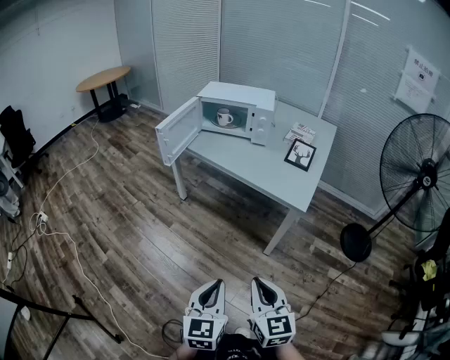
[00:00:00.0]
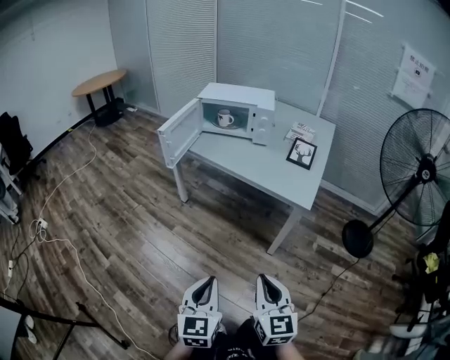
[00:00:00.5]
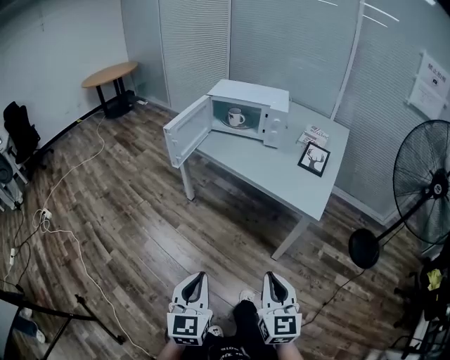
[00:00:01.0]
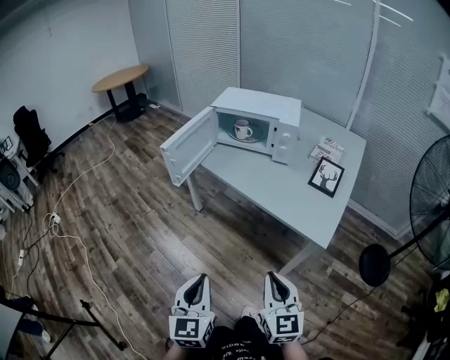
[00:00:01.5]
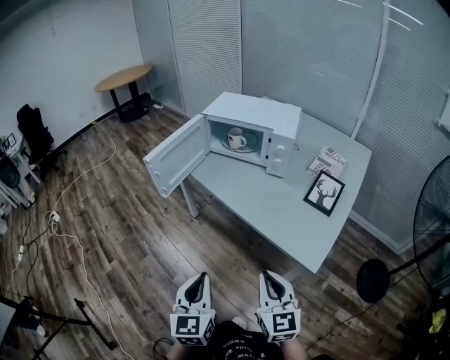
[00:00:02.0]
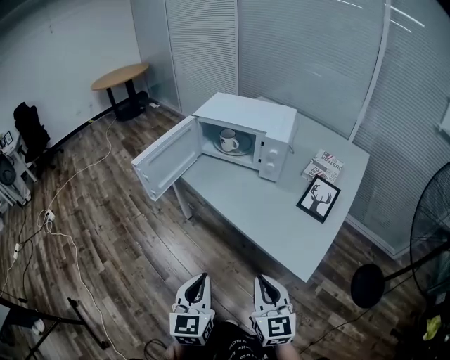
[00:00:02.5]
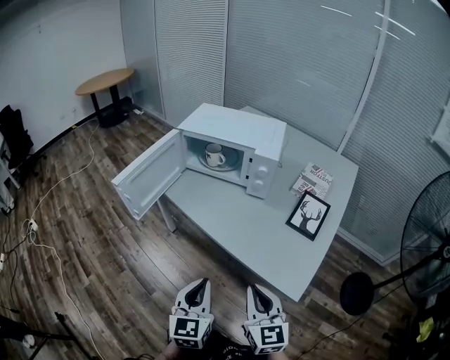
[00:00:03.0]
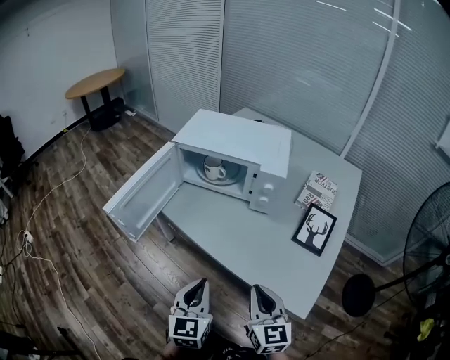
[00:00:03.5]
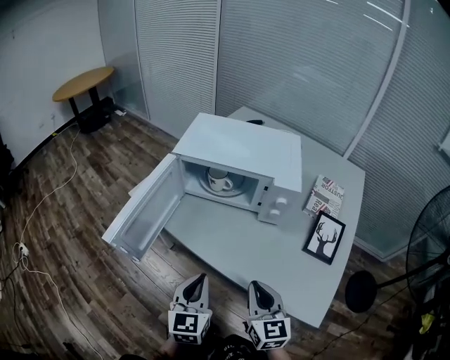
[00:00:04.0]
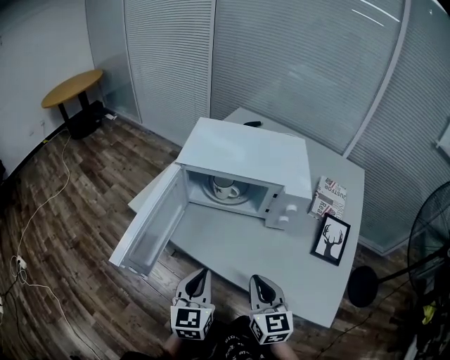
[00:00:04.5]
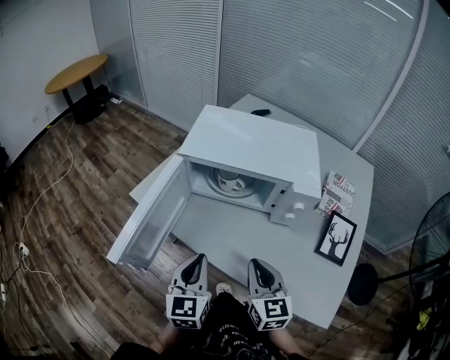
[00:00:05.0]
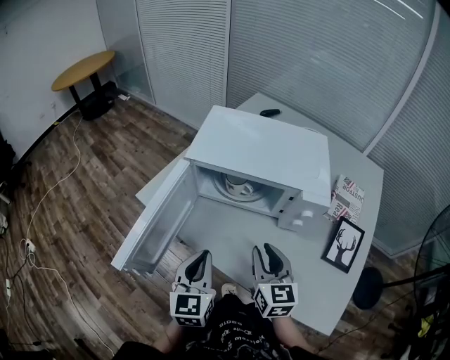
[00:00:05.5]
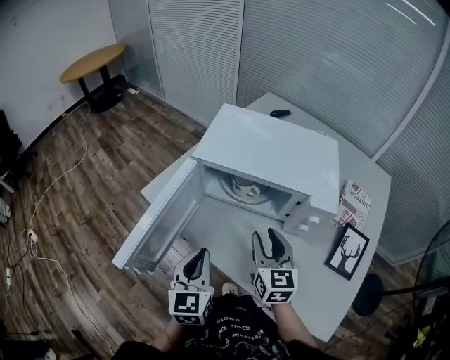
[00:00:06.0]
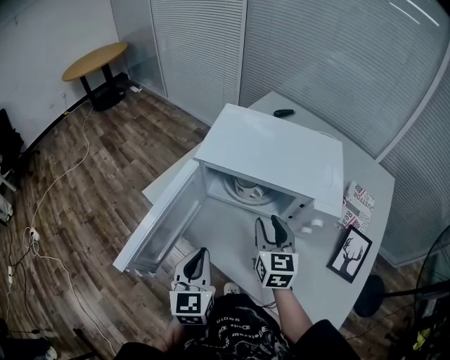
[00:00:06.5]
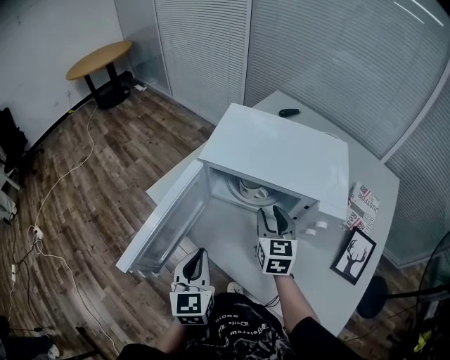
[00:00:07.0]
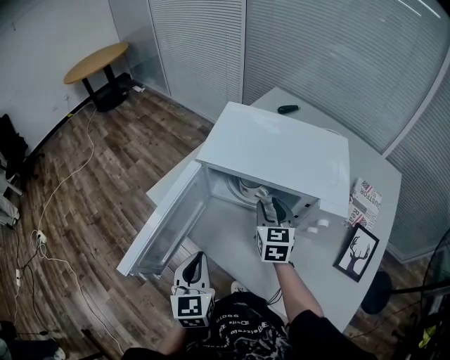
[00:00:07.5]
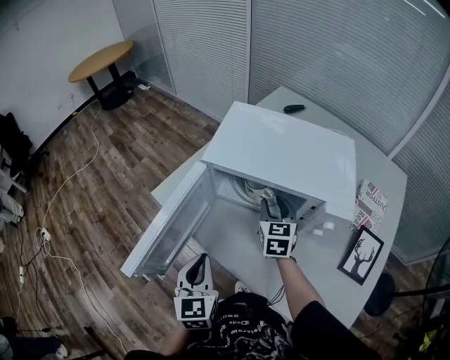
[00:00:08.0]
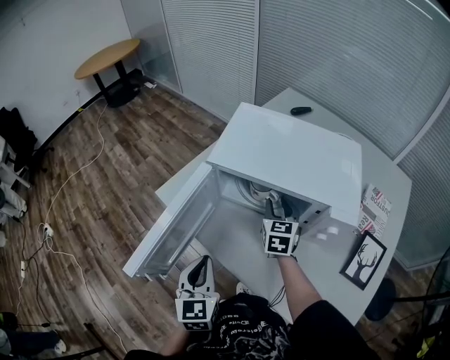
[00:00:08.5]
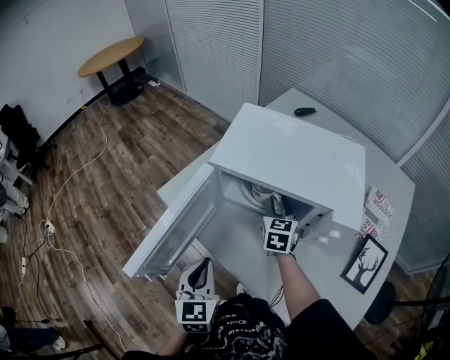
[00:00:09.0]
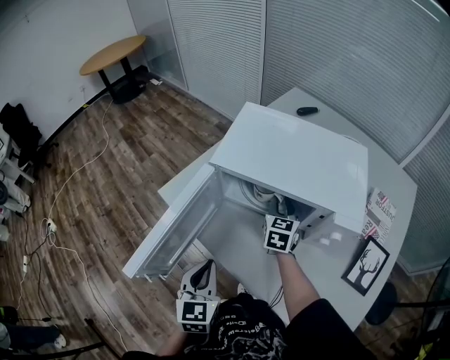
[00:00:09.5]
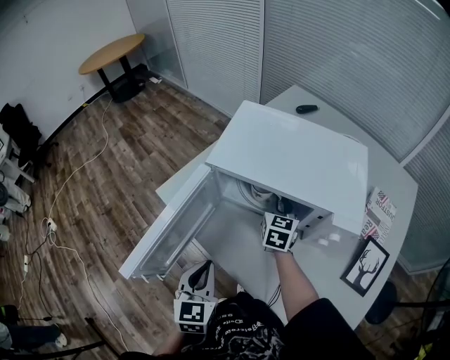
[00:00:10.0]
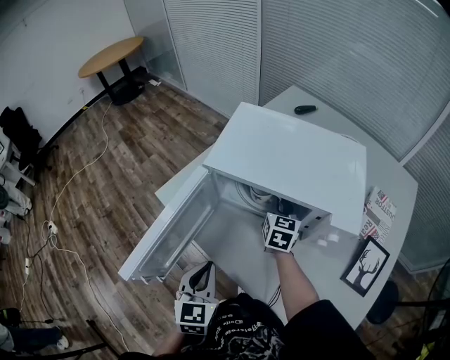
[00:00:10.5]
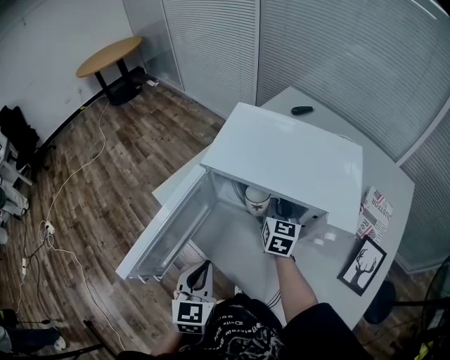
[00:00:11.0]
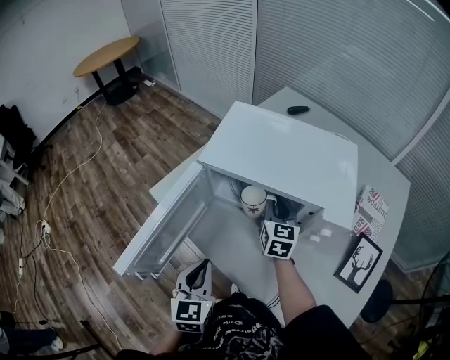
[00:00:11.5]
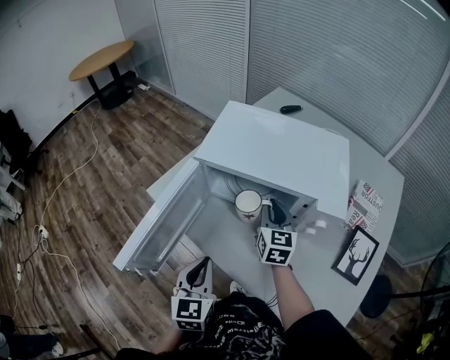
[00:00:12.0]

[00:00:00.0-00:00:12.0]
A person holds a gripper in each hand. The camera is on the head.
00:00:00.0 to 00:00:02.0: Both grippers travel together forward, some 25 cm.
00:00:02.0 to 00:00:04.0: The two grippers go roughly 25 cm forward.
00:00:04.0 to 00:00:06.0: The left gripper shifts about 15 cm forward and to the left. The right gripper moves forward, about 20 cm, and opens.
00:00:06.0 to 00:00:08.0: The right gripper is displaced forward by approximately 15 cm.
00:00:08.0 to 00:00:10.0: The right gripper changes place by approximately 5 cm, and closes its fingers.
00:00:10.0 to 00:00:12.0: The right gripper shifts roughly 5 cm backward.

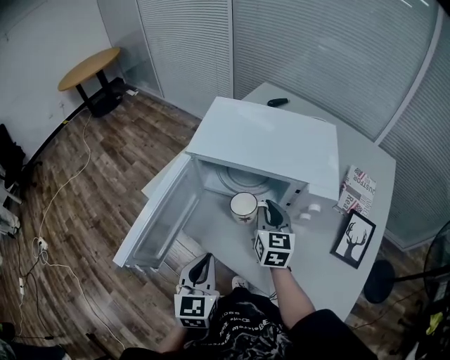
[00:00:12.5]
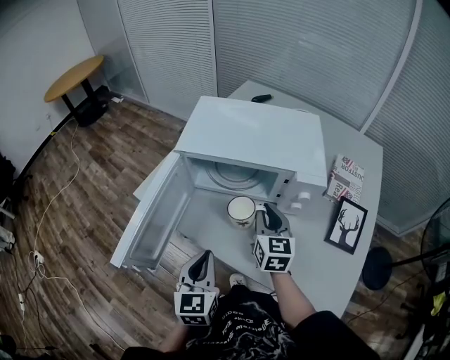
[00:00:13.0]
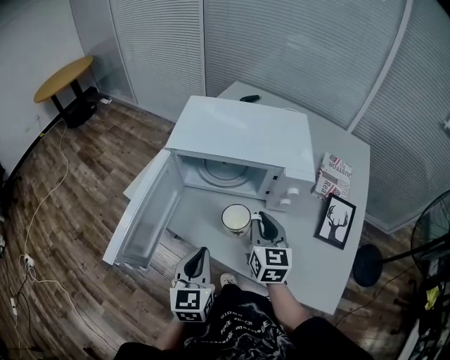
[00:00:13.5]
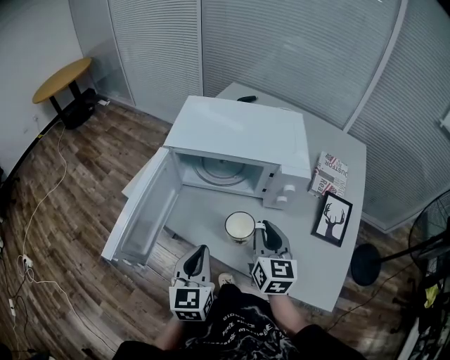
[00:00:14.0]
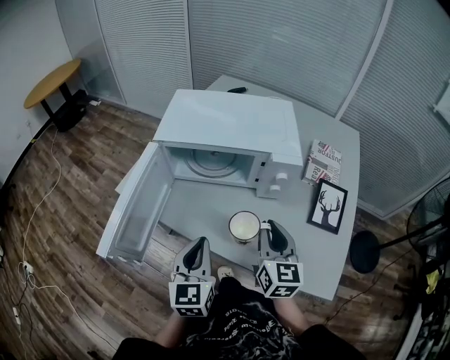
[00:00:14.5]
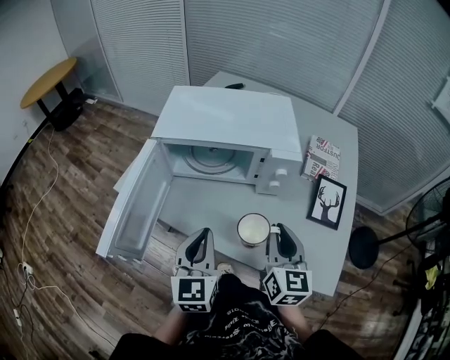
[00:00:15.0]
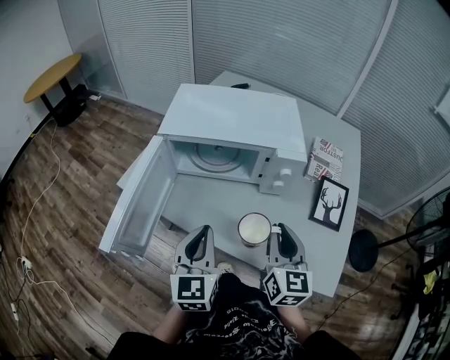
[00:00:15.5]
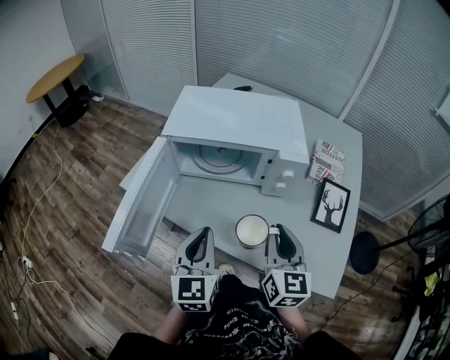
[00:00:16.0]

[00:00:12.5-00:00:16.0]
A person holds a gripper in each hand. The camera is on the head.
00:00:12.5 to 00:00:14.5: The left gripper shifts by approximately 5 cm; the right gripper travels backward and to the right by roughly 15 cm.
00:00:14.5 to 00:00:16.0: The grippers stay close to where they were, moving slightly.

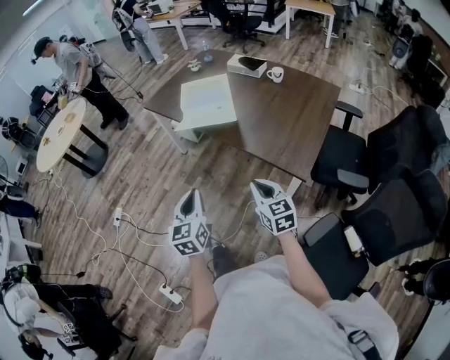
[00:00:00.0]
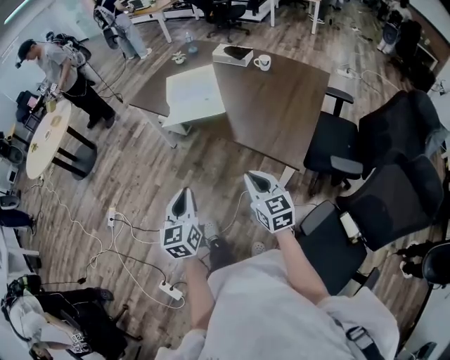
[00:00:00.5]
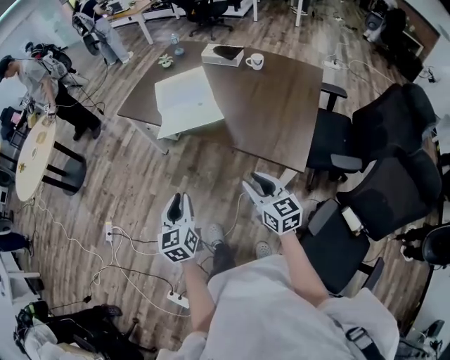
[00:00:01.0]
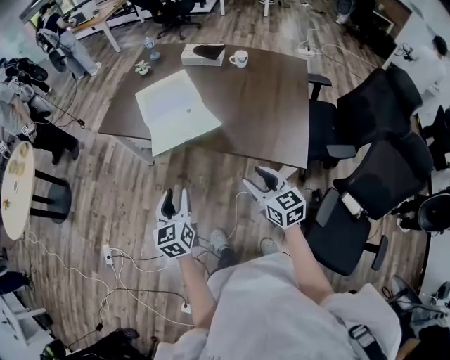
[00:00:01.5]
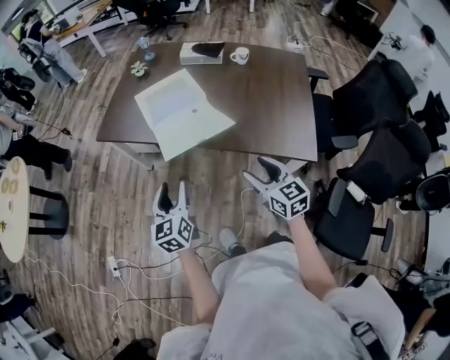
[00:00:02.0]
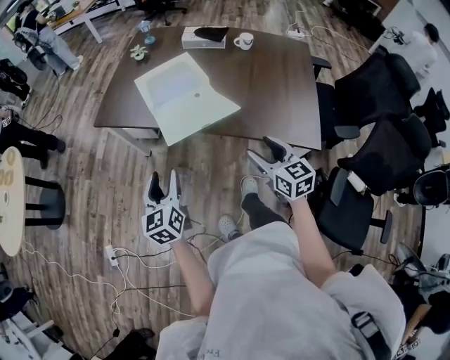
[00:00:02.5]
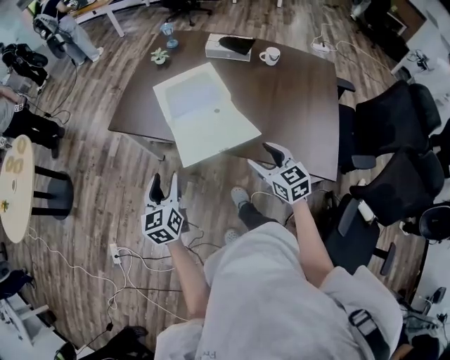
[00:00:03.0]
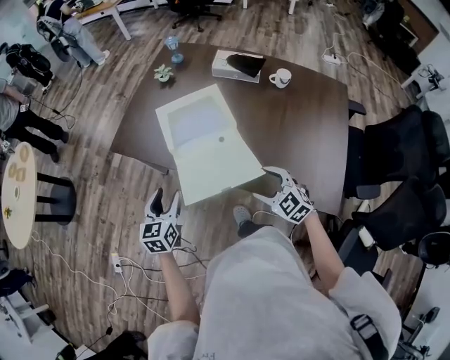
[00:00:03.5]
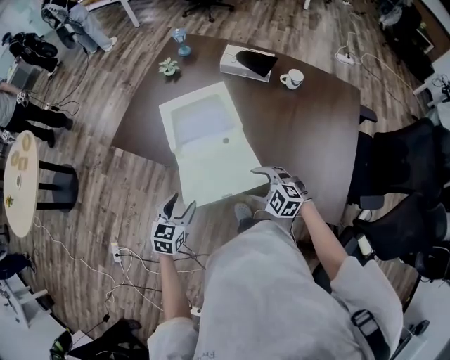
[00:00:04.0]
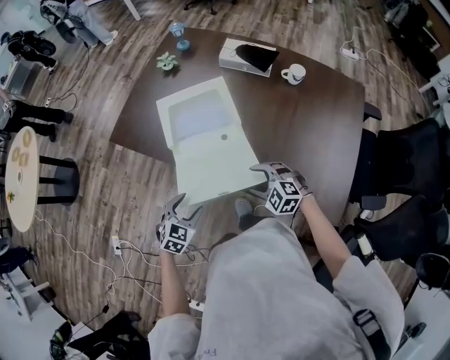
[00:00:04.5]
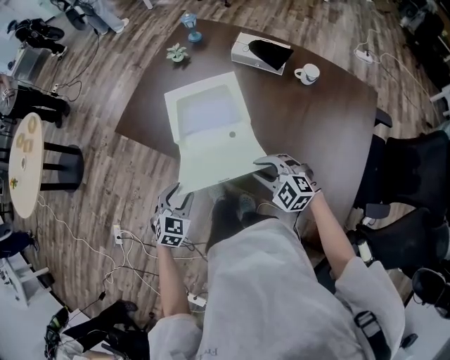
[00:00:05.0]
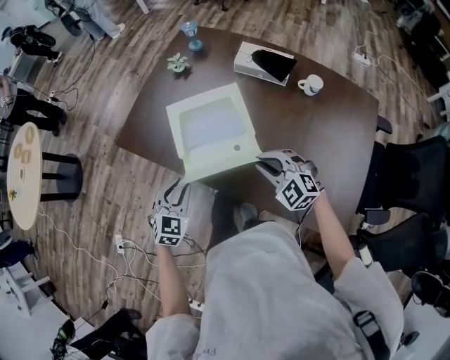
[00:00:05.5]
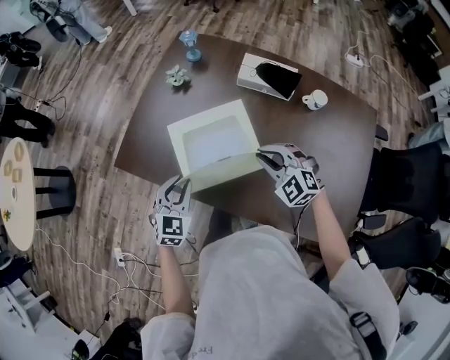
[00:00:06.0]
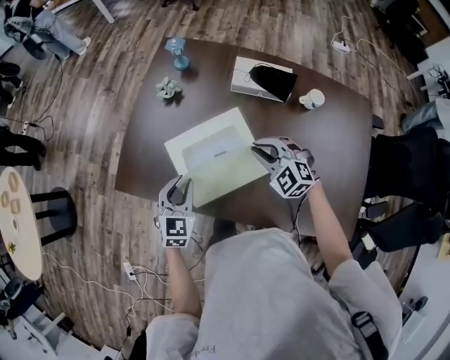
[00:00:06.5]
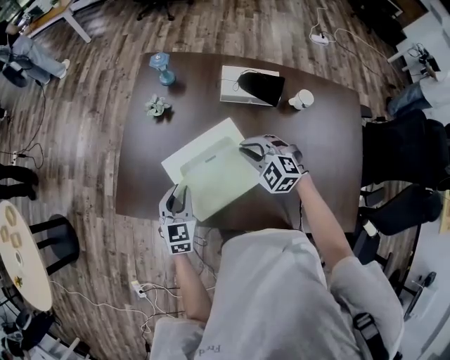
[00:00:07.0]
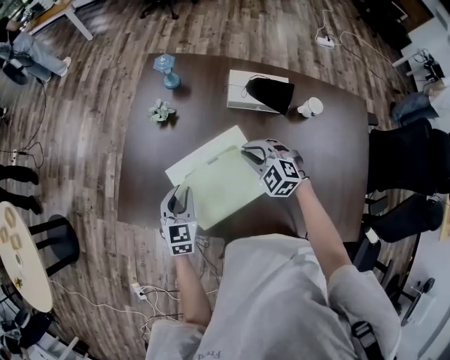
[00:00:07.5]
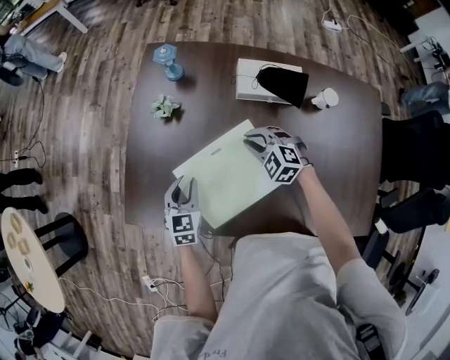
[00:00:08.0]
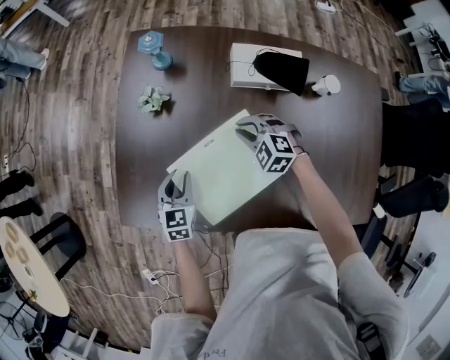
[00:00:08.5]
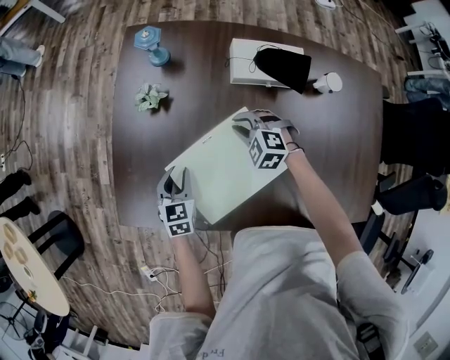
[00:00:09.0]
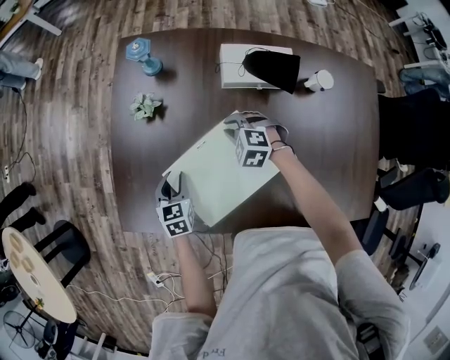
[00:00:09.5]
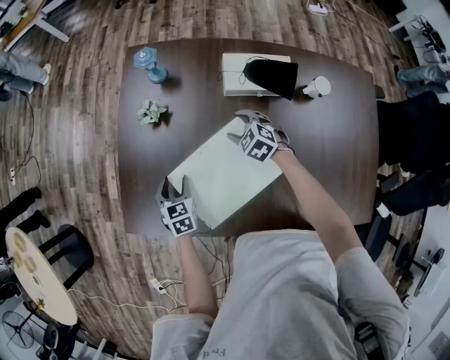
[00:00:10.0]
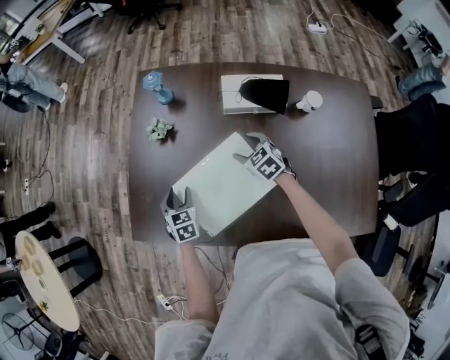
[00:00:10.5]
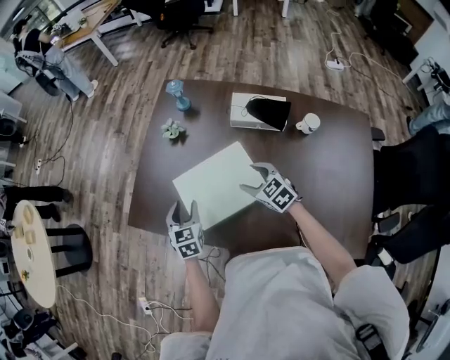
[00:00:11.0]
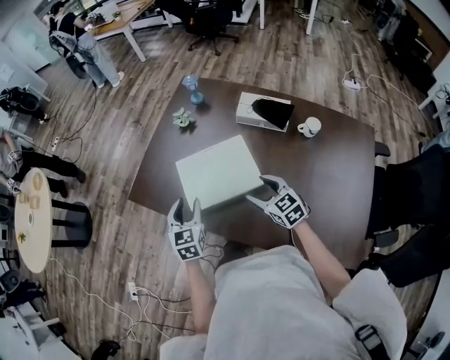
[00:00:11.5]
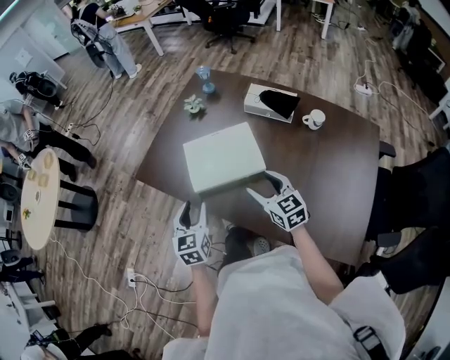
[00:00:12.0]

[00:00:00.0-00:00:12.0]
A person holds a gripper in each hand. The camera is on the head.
00:00:00.0 to 00:00:02.0: Both grippers travel together forward and to the left, approximately 25 cm. The right gripper opens; the left gripper opens.
00:00:02.0 to 00:00:04.0: Both grippers move forward and downward, approximately 25 cm. The right gripper changes its angle by roughly 60 degrees. The left gripper swivels some 30 degrees.
00:00:04.0 to 00:00:06.0: Both grippers travel together forward, roughly 25 cm. The left gripper changes its angle by some 20 degrees, and closes up. Meanwhile the right gripper closes its fingers.
00:00:06.0 to 00:00:08.0: Both grippers travel together forward and downward, some 20 cm.
00:00:08.0 to 00:00:10.0: The right gripper heads downward and forward, covering approximately 10 cm, changes its angle by roughly 20 degrees, and opens up, while the left gripper goes roughly 5 cm downward, and opens.
00:00:10.0 to 00:00:12.0: The two grippers go some 35 cm backward and upward. The left gripper turns by roughly 30 degrees. Meanwhile the right gripper tips its fingers upward by some 40 degrees.
